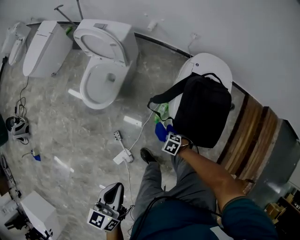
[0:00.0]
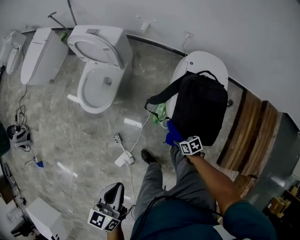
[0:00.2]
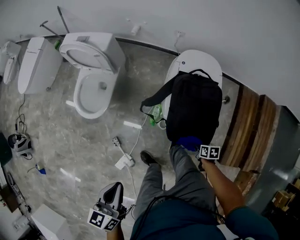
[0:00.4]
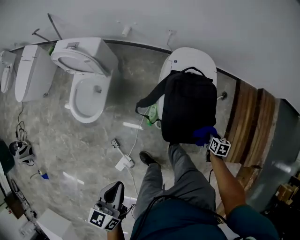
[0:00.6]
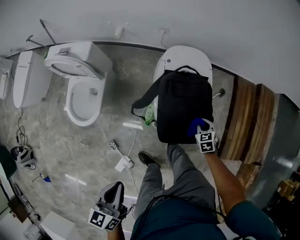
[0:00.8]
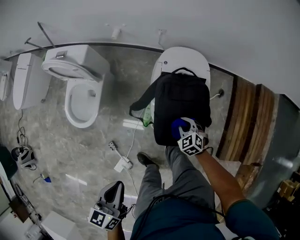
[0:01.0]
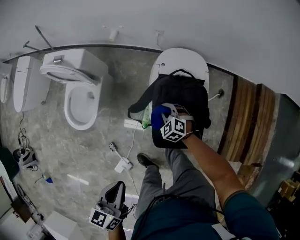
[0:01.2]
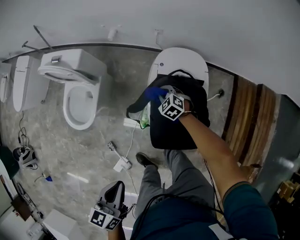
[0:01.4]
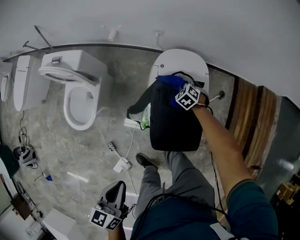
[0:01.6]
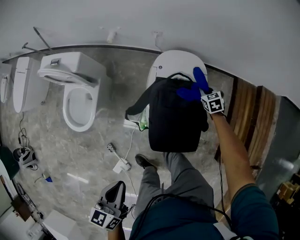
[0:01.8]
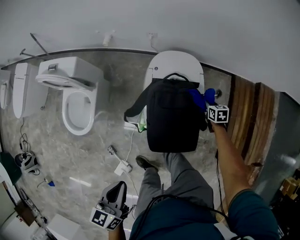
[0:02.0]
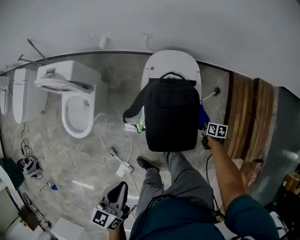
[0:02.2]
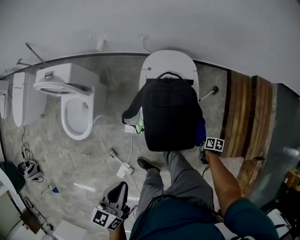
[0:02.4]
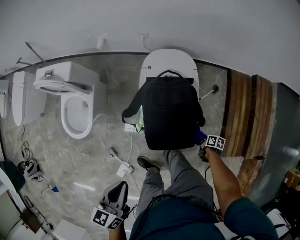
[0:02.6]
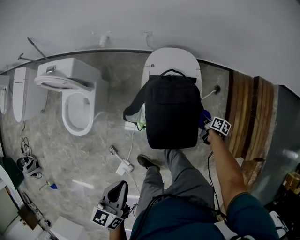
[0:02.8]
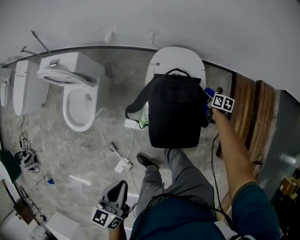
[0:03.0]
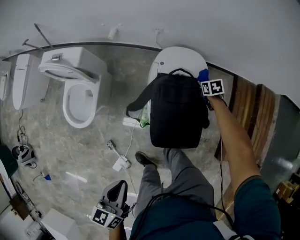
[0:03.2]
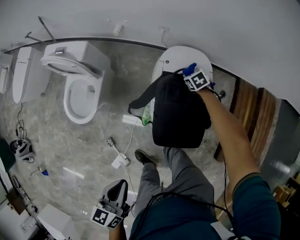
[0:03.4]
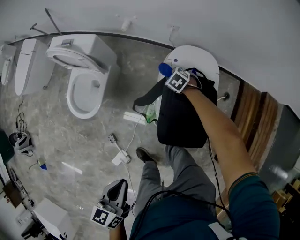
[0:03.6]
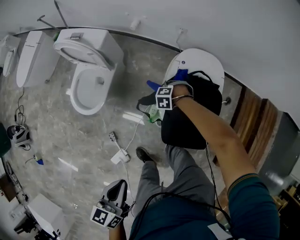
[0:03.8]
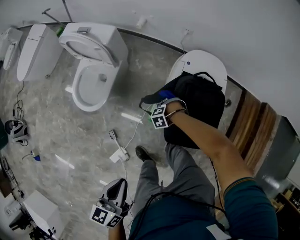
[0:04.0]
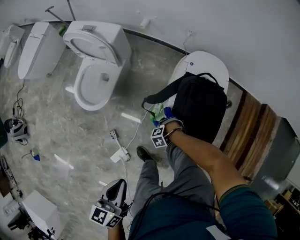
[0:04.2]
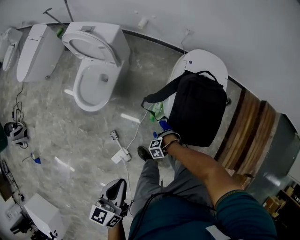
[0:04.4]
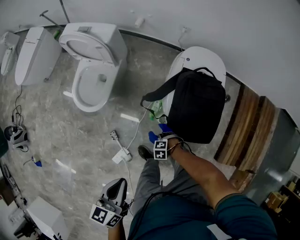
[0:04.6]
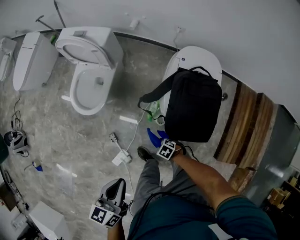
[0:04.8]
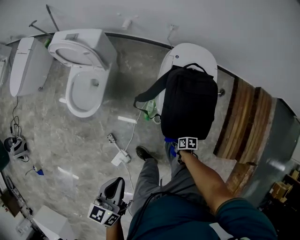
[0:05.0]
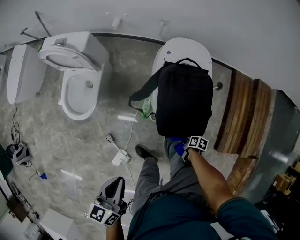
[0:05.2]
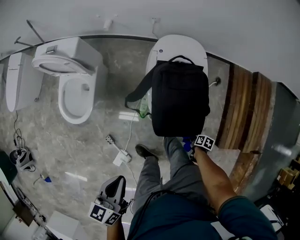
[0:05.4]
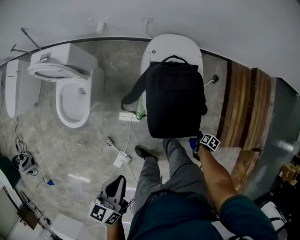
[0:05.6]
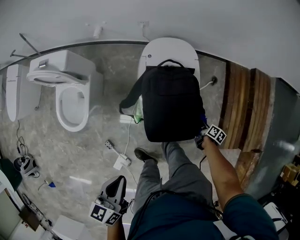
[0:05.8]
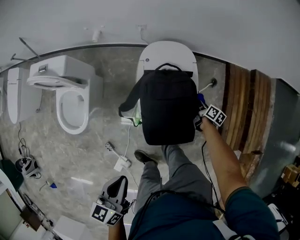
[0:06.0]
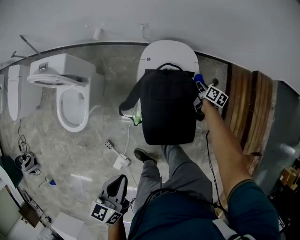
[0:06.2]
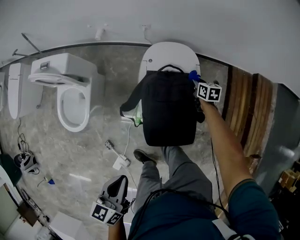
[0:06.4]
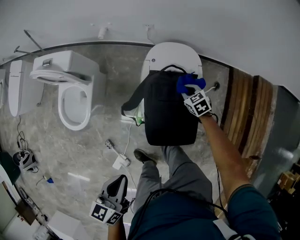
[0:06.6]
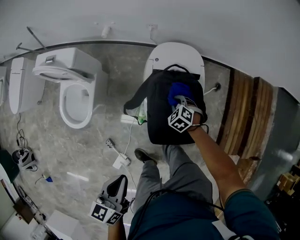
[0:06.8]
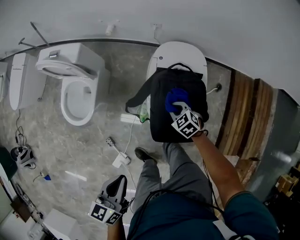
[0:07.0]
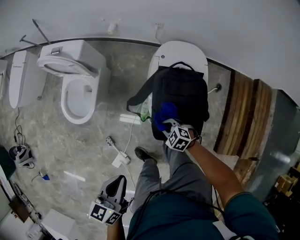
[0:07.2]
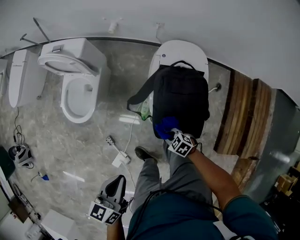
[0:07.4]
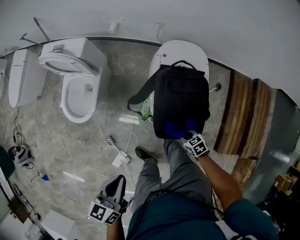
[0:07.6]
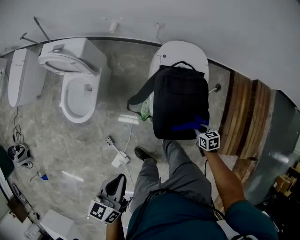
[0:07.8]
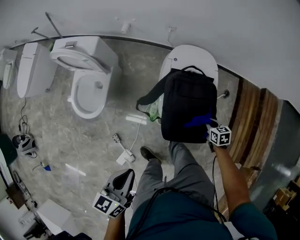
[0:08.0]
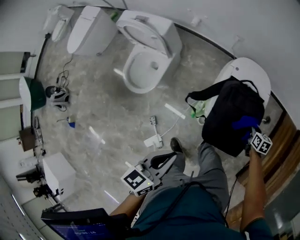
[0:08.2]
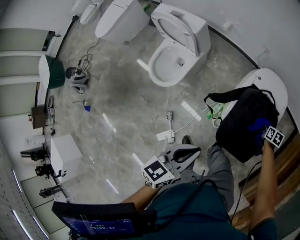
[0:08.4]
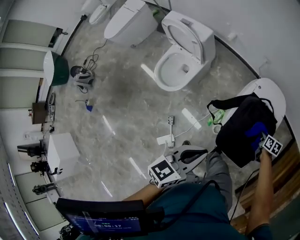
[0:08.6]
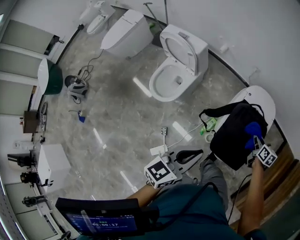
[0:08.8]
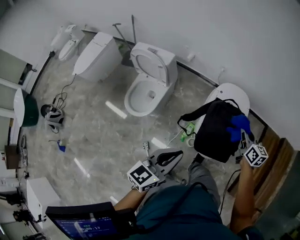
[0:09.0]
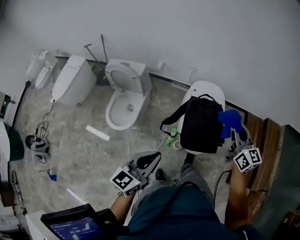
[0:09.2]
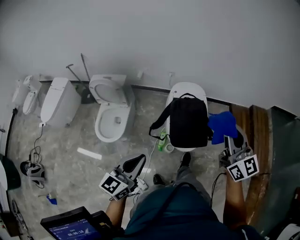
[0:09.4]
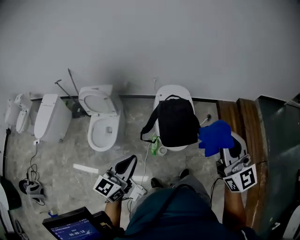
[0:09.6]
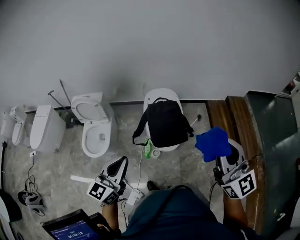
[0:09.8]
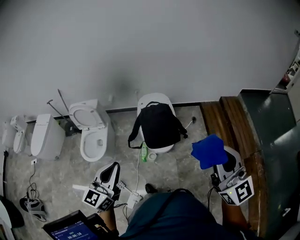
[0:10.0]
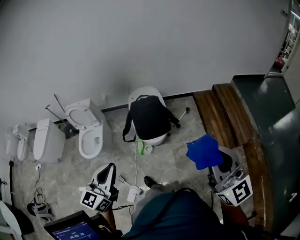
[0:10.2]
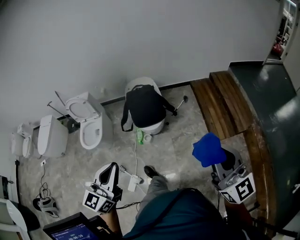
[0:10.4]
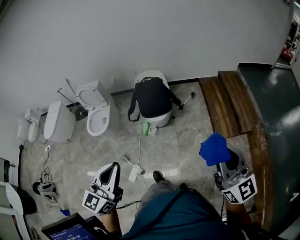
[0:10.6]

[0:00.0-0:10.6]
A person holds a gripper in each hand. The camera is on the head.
0:00.0 to 0:01.6: The right gripper changes place by some 50 cm, and turns by some 40 degrees. Meanwhile the left gripper moves approximately 20 cm.
0:01.6 to 0:03.0: The right gripper goes some 20 cm to the right, goes backward and returns, about 35 cm each way, and twists approximately 80 degrees clockwise, seen from behind.
0:03.0 to 0:04.6: The right gripper changes place by some 50 cm, and rolls counterclockwise, seen from behind, by some 110 degrees. Meanwhile the left gripper moves roughly 15 cm.
0:04.6 to 0:06.0: The right gripper ends up some 50 cm from where it was, and twists about 120 degrees clockwise, seen from behind, while the left gripper changes place by roughly 15 cm.
0:06.0 to 0:07.6: The right gripper moves approximately 30 cm, and twists roughly 60 degrees counterclockwise, seen from behind. Meanwhile the left gripper shifts by approximately 10 cm.
0:07.6 to 0:09.0: The right gripper moves up and down over about 30 cm, changing direction 2 times, and points its fingers roughly 40 degrees further upward; the left gripper goes some 10 cm upward, and swivels about 20 degrees.
0:09.0 to 0:10.6: Both grippers are carried backward, about 60 cm. The right gripper travels upward by approximately 35 cm, and tips its fingers upward by some 30 degrees. The left gripper travels upward by approximately 20 cm, and turns by approximately 30 degrees.

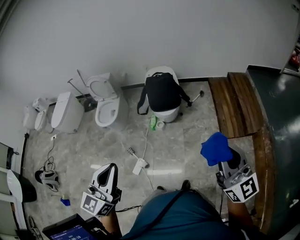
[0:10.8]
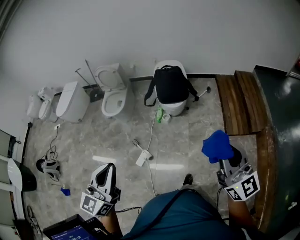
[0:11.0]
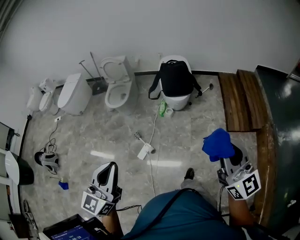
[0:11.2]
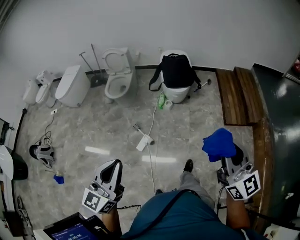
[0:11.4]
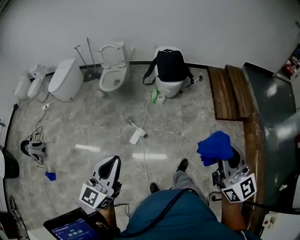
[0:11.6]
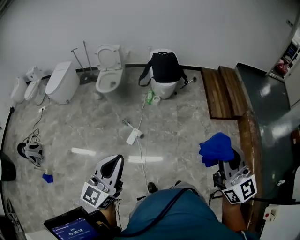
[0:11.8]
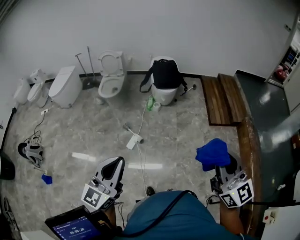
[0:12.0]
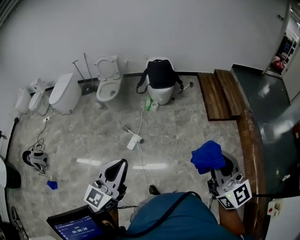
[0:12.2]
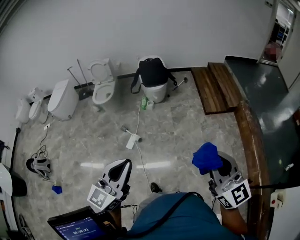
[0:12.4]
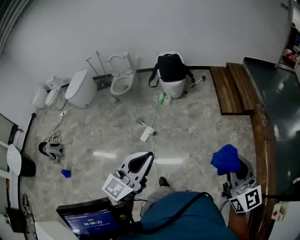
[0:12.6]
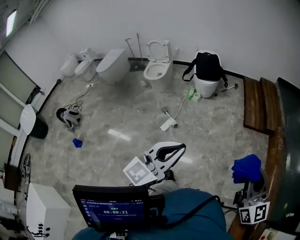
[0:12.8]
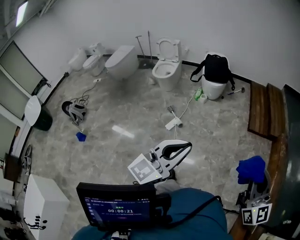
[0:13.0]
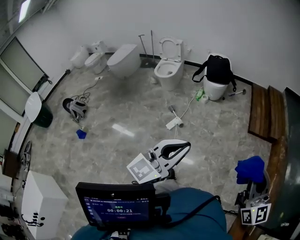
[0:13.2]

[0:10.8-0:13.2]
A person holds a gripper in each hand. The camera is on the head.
0:10.8 to 0:12.0: The grippers both shift backward and to the left by about 40 cm.
0:12.0 to 0:13.2: The grippers both shift to the right and backward by about 20 cm.

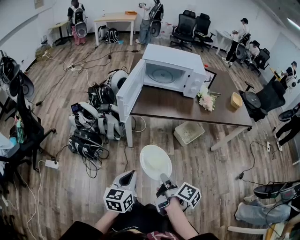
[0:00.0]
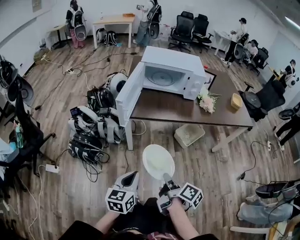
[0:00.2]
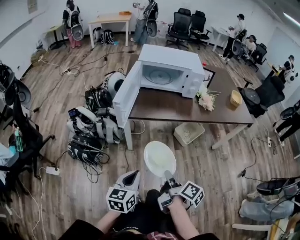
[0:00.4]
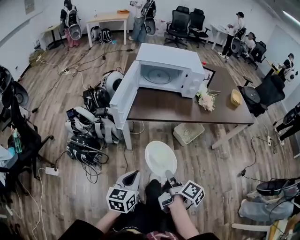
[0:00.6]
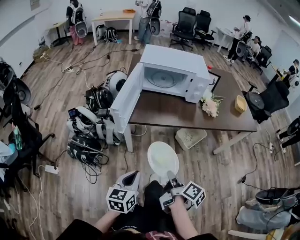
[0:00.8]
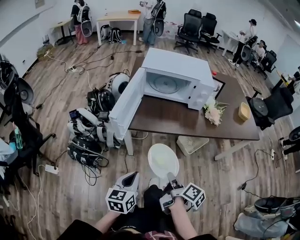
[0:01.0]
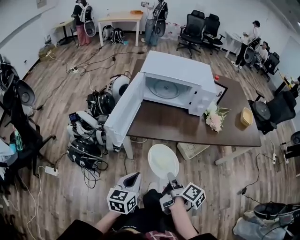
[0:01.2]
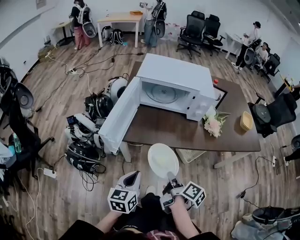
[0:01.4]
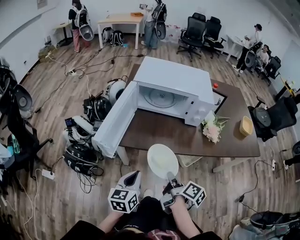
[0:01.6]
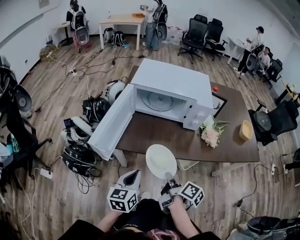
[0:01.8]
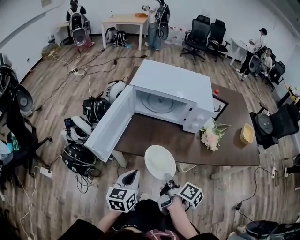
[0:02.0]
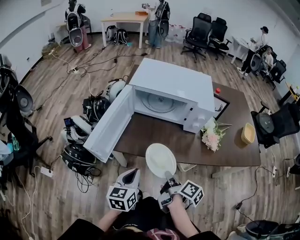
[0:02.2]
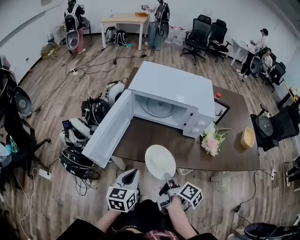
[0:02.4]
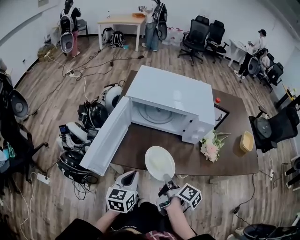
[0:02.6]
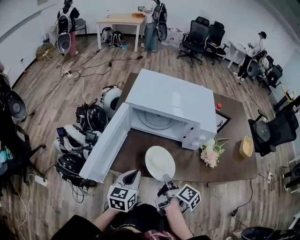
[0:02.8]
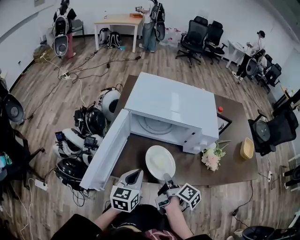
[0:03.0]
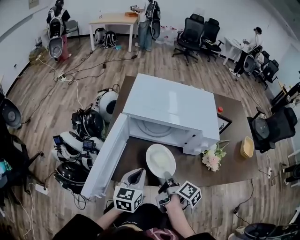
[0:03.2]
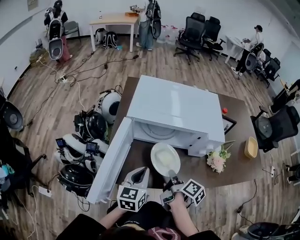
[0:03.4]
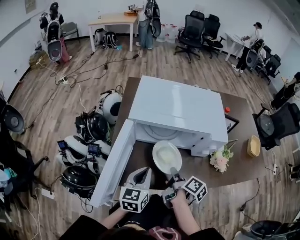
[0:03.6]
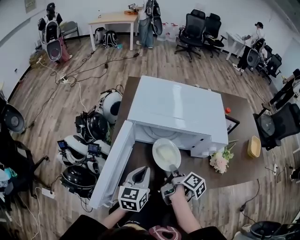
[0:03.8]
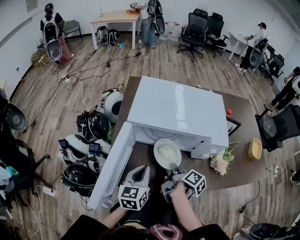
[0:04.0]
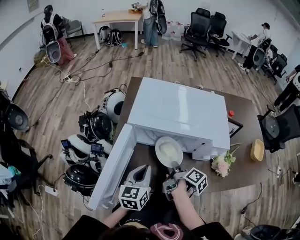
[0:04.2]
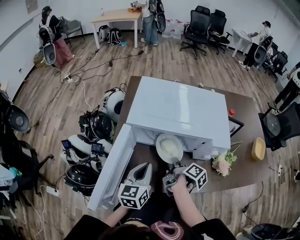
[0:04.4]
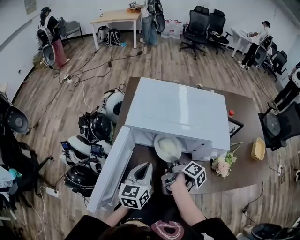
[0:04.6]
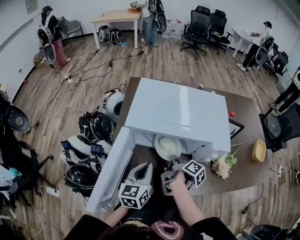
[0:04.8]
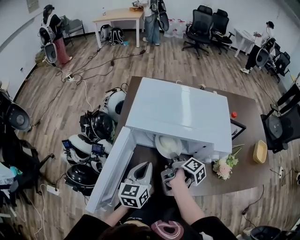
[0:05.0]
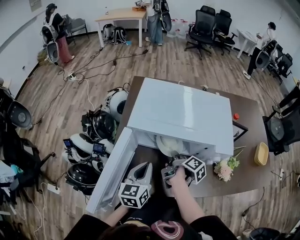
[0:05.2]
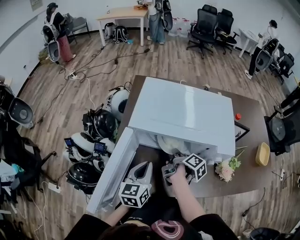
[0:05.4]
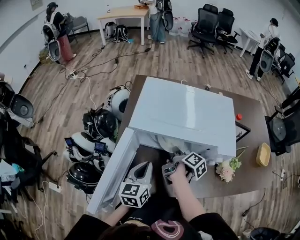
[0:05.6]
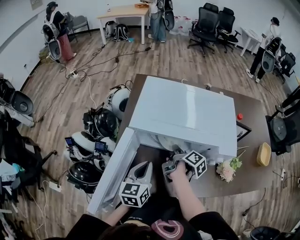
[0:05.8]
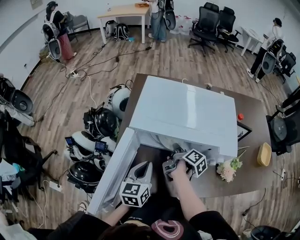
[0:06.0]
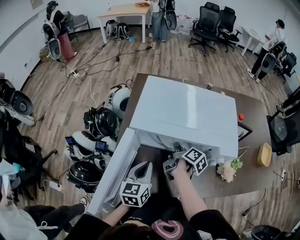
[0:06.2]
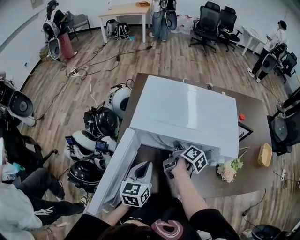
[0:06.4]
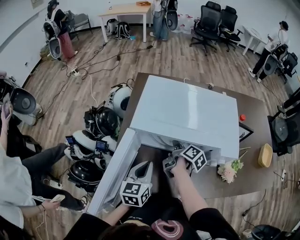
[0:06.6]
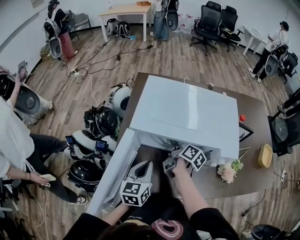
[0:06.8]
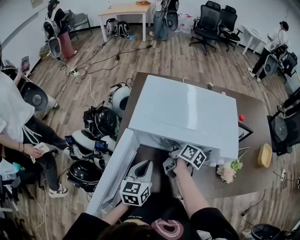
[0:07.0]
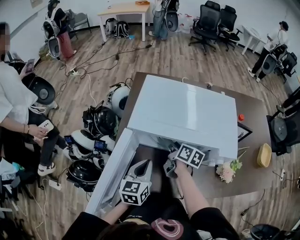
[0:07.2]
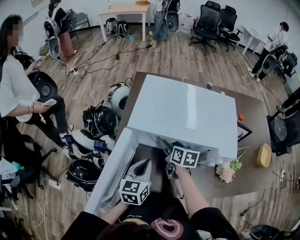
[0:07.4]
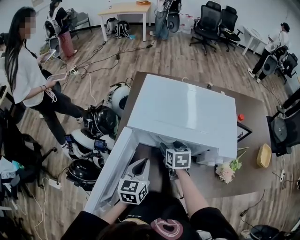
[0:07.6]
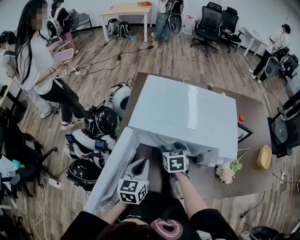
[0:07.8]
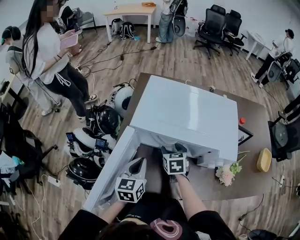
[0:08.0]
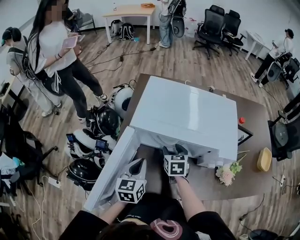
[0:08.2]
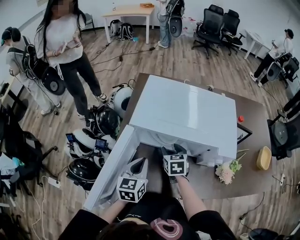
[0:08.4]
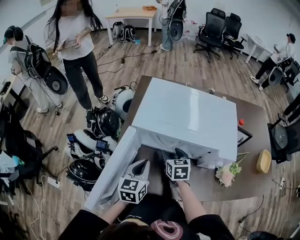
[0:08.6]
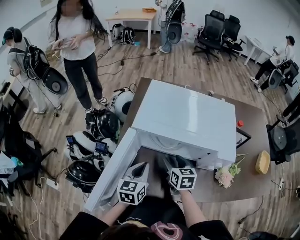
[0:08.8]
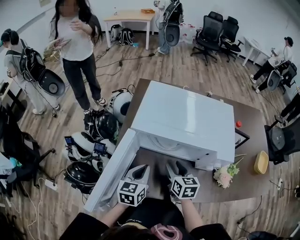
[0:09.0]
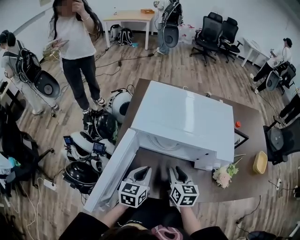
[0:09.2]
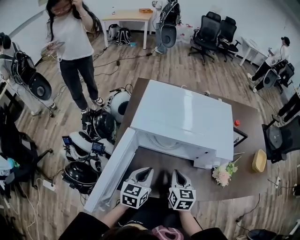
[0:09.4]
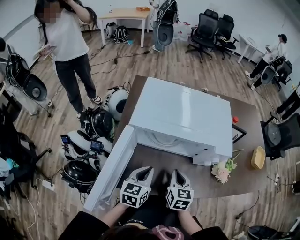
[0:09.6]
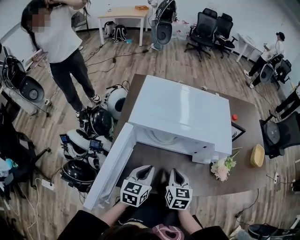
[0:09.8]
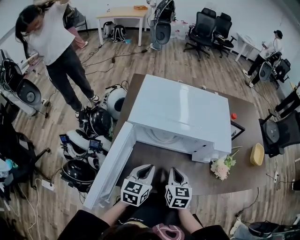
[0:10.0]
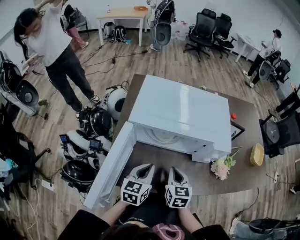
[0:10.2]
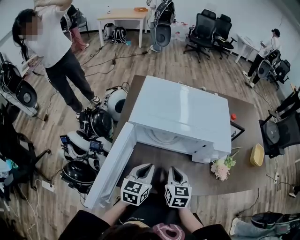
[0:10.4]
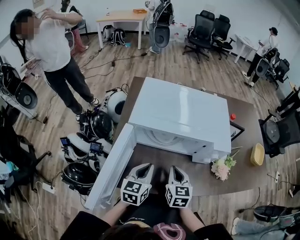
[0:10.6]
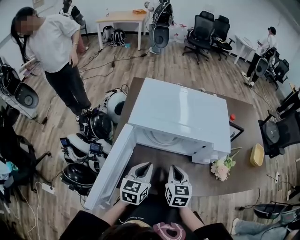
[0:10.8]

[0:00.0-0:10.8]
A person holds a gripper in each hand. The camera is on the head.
0:00.0 to 0:01.6: The grippers both shift forward by about 25 cm.
0:01.6 to 0:03.0: Both grippers move forward, approximately 20 cm.
0:03.0 to 0:04.6: Both grippers move forward, about 15 cm.
0:04.6 to 0:06.2: The right gripper goes about 10 cm forward.
0:06.2 to 0:07.8: The right gripper twists approximately 70 degrees counterclockwise, seen from behind, and opens its fingers.
0:07.8 to 0:09.2: The right gripper is displaced backward by roughly 10 cm, and closes.
0:09.2 to 0:10.8: The right gripper closes.
